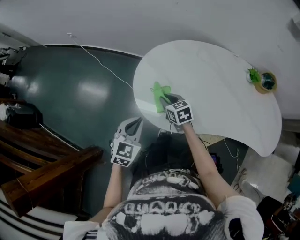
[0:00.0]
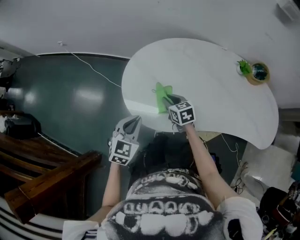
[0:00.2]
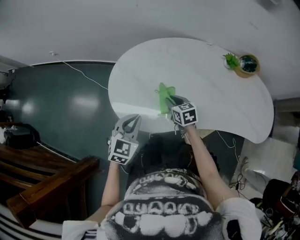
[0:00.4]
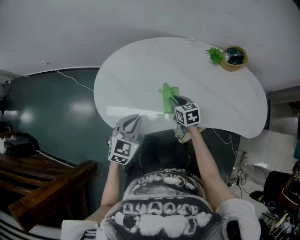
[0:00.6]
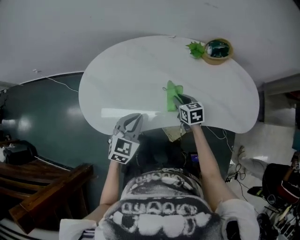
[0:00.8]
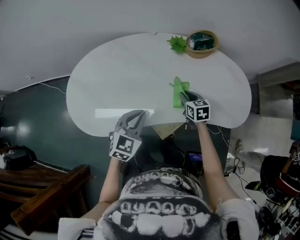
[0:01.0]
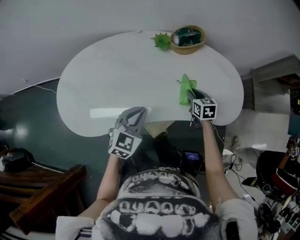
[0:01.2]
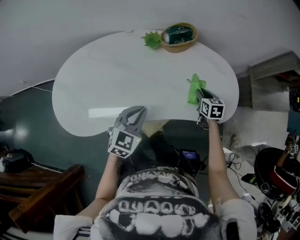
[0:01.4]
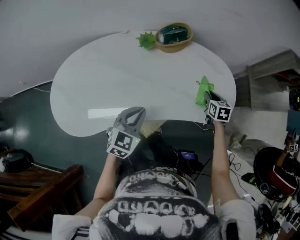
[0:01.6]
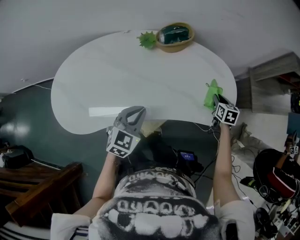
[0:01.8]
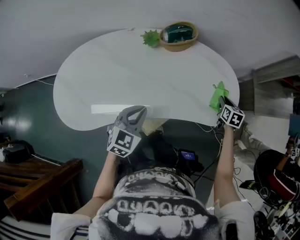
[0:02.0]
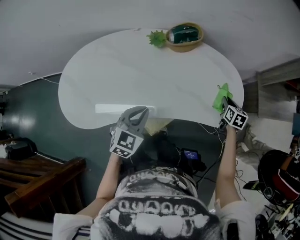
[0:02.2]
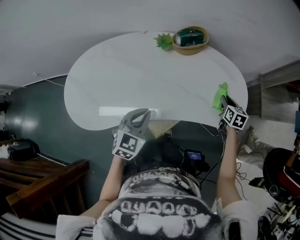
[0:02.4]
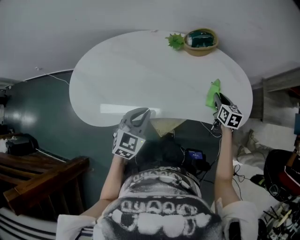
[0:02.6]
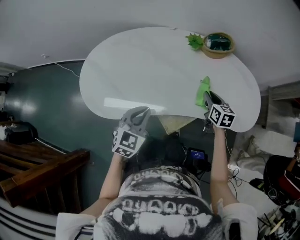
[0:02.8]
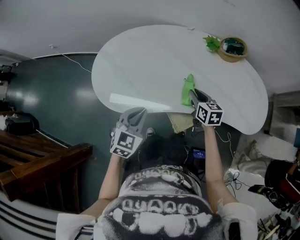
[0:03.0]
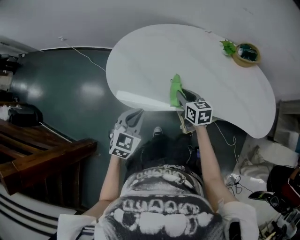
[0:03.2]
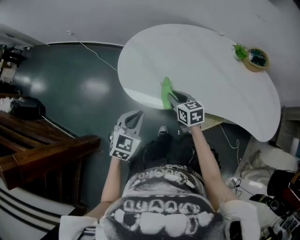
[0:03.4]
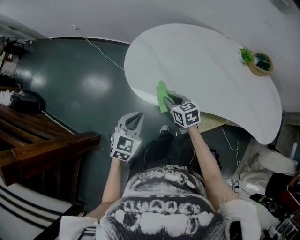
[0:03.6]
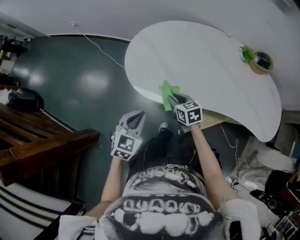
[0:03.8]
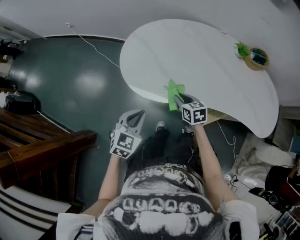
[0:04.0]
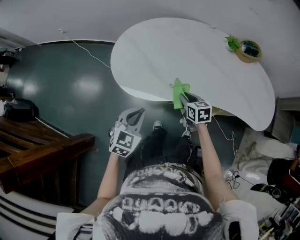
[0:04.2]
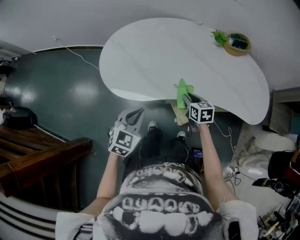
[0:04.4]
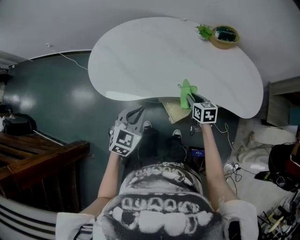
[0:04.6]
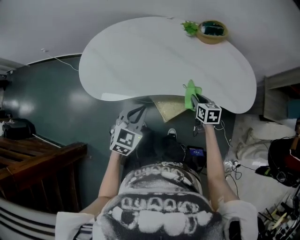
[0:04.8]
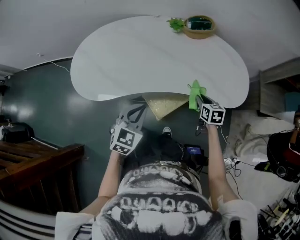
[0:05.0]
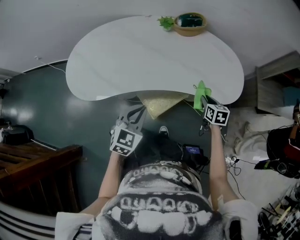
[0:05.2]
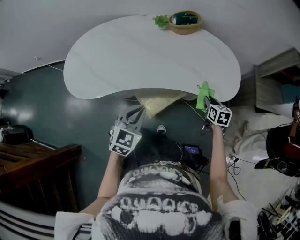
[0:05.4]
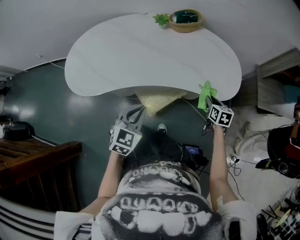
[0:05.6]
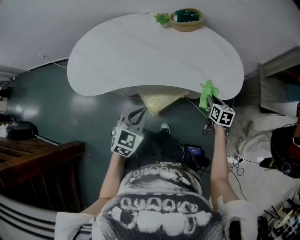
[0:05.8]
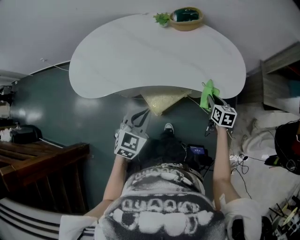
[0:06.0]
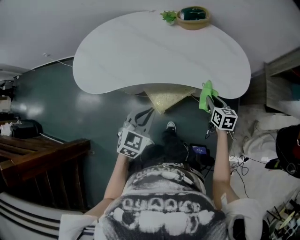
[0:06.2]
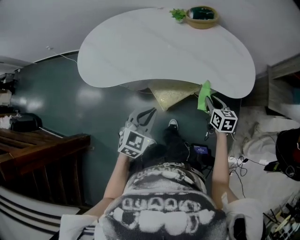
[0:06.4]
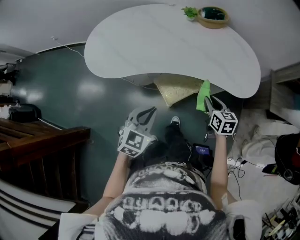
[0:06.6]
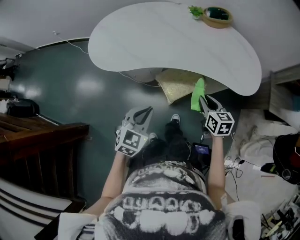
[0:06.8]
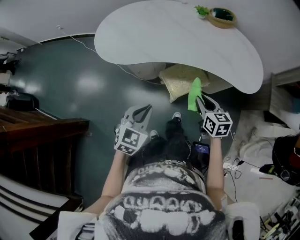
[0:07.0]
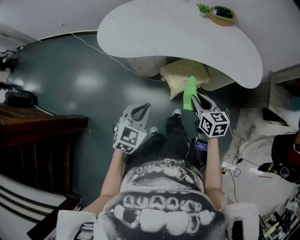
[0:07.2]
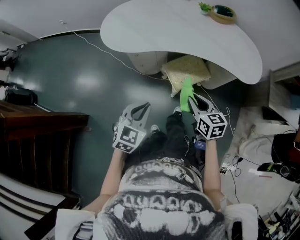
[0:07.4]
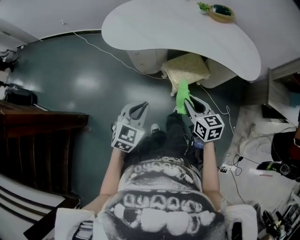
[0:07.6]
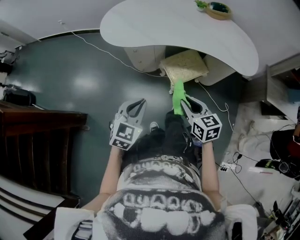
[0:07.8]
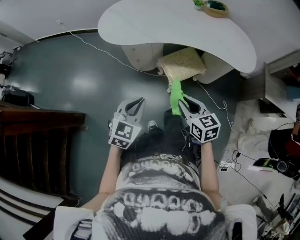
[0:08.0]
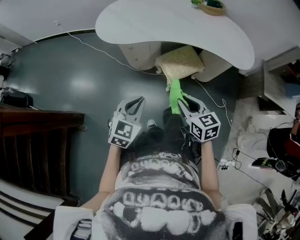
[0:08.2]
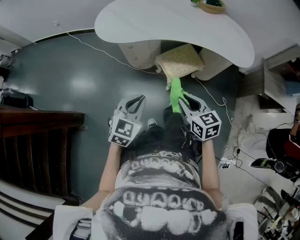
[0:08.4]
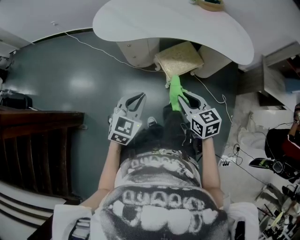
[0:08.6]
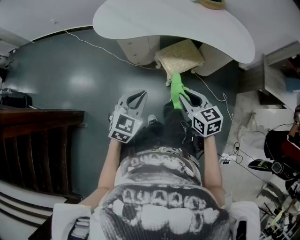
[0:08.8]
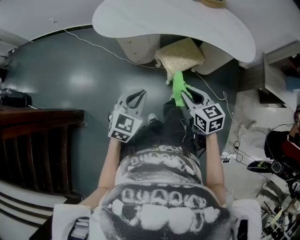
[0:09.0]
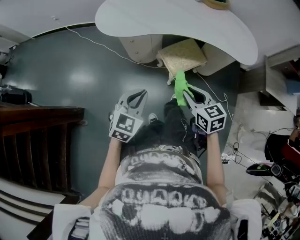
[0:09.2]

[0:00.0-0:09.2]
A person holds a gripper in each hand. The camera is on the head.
0:00.0 to 0:01.6: Both grippers are carried approximately 70 cm. The right gripper changes its angle by roughly 50 degrees; the left gripper turns by about 30 degrees.
0:01.6 to 0:03.0: The right gripper moves approximately 40 cm, and changes its angle by some 30 degrees, while the left gripper shifts by approximately 25 cm.
0:03.0 to 0:04.6: Both grippers move backward, about 10 cm. The left gripper goes to the left and returns, some 20 cm each way. The right gripper moves roughly 35 cm to the left and comes back.
0:04.6 to 0:06.2: Both grippers move to the right, approximately 25 cm.
0:06.2 to 0:07.6: The left gripper travels backward and to the left by approximately 30 cm, while the right gripper travels to the left and backward by about 40 cm, and changes its angle by roughly 20 degrees.
0:07.6 to 0:09.2: The grippers stay close to where they were, moving slightly.

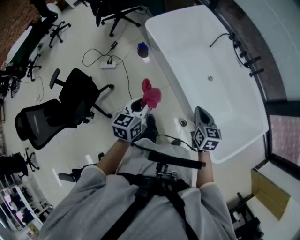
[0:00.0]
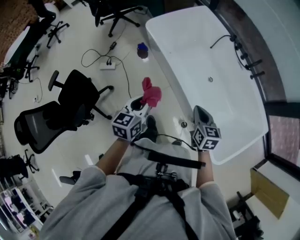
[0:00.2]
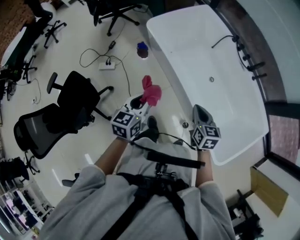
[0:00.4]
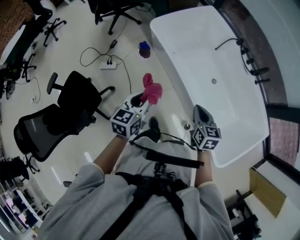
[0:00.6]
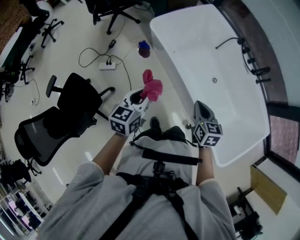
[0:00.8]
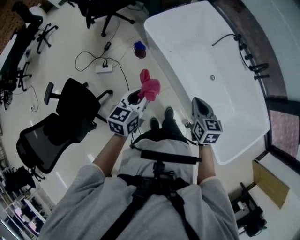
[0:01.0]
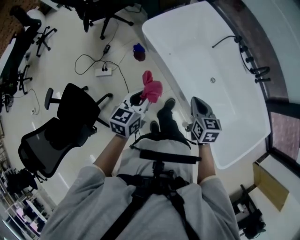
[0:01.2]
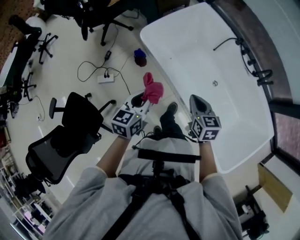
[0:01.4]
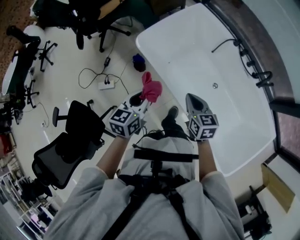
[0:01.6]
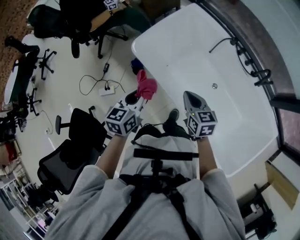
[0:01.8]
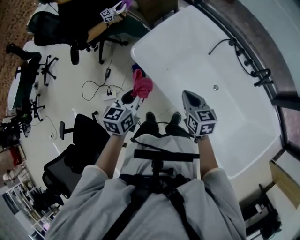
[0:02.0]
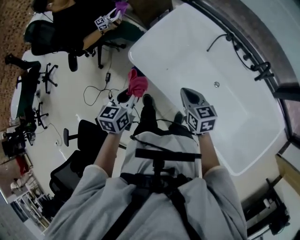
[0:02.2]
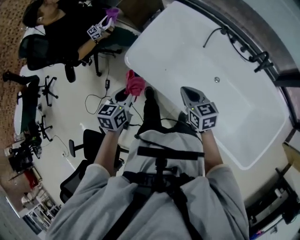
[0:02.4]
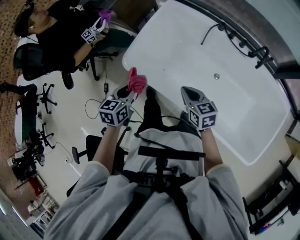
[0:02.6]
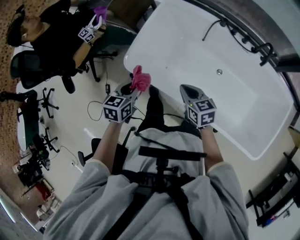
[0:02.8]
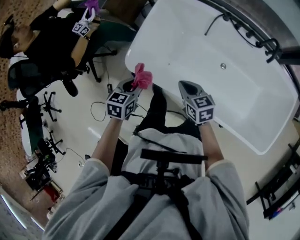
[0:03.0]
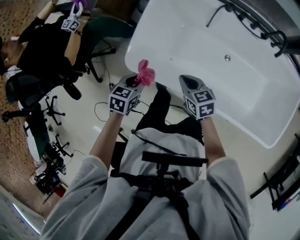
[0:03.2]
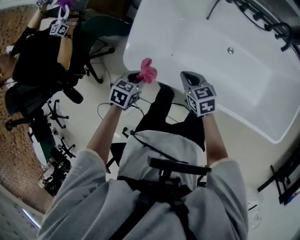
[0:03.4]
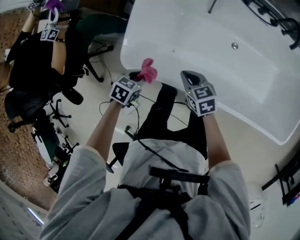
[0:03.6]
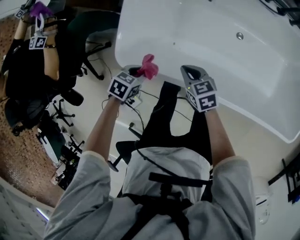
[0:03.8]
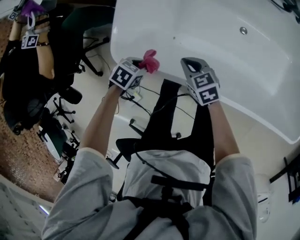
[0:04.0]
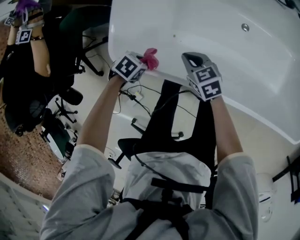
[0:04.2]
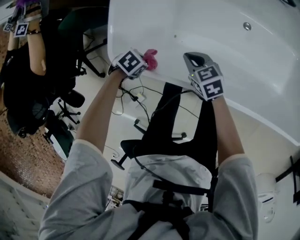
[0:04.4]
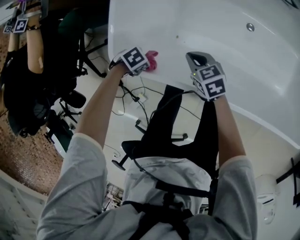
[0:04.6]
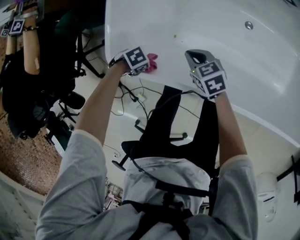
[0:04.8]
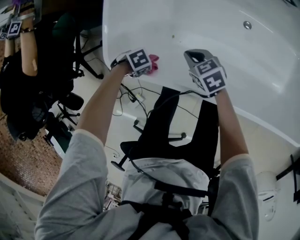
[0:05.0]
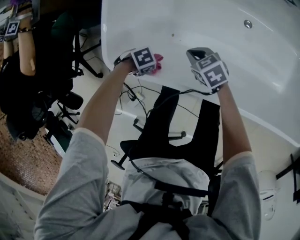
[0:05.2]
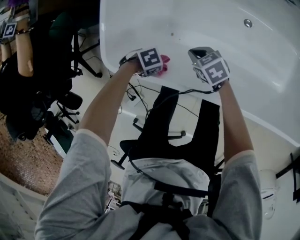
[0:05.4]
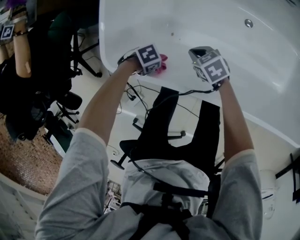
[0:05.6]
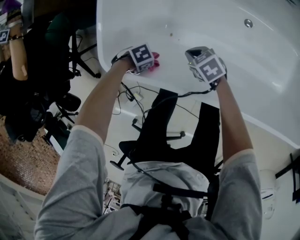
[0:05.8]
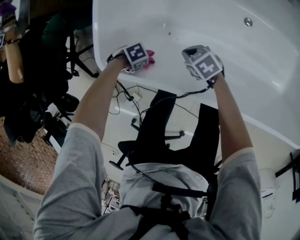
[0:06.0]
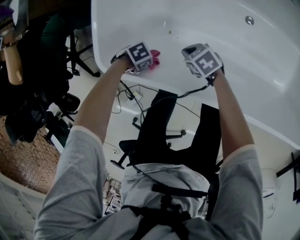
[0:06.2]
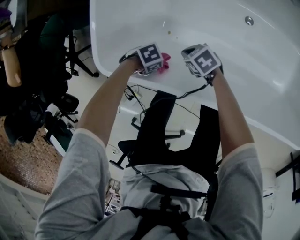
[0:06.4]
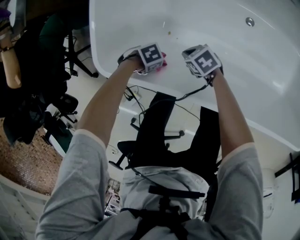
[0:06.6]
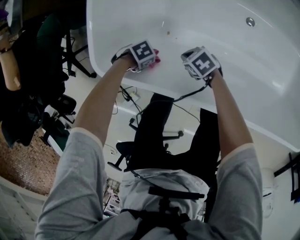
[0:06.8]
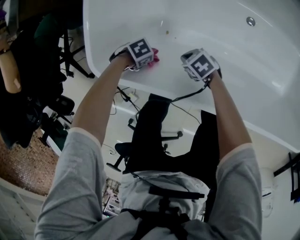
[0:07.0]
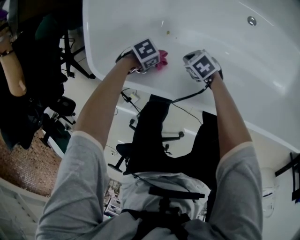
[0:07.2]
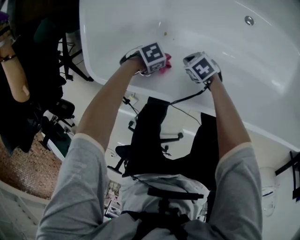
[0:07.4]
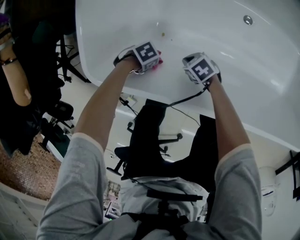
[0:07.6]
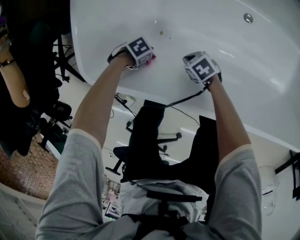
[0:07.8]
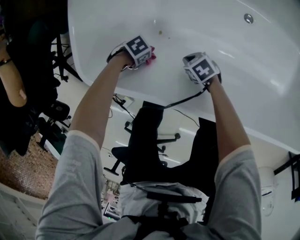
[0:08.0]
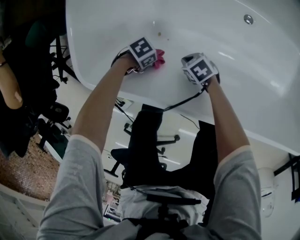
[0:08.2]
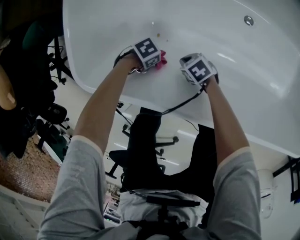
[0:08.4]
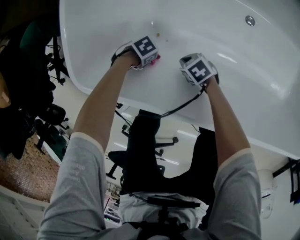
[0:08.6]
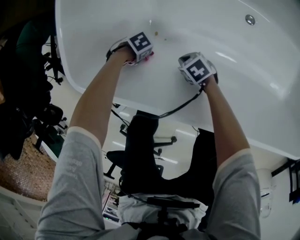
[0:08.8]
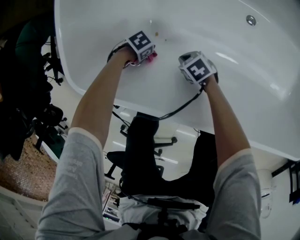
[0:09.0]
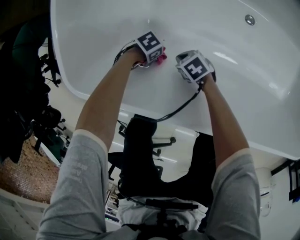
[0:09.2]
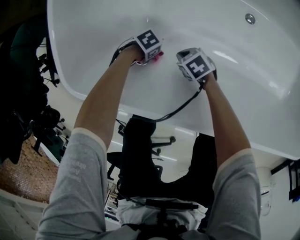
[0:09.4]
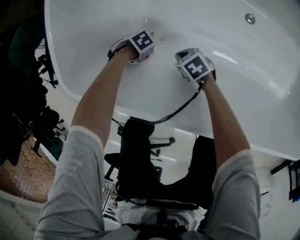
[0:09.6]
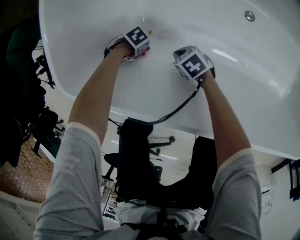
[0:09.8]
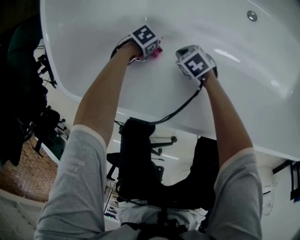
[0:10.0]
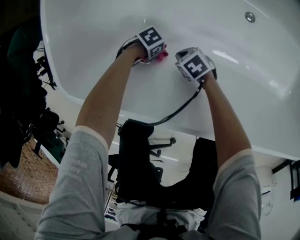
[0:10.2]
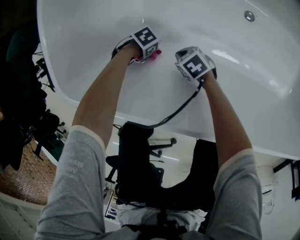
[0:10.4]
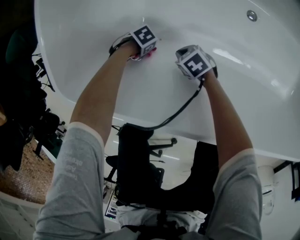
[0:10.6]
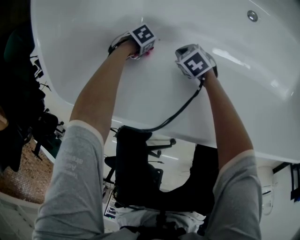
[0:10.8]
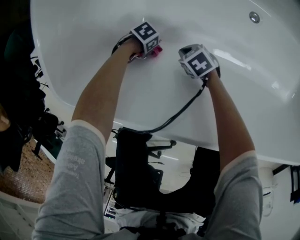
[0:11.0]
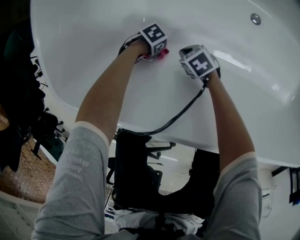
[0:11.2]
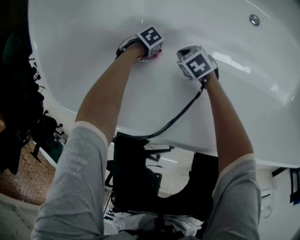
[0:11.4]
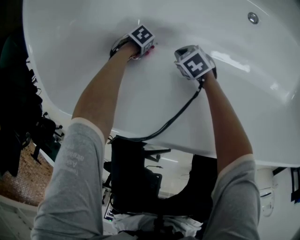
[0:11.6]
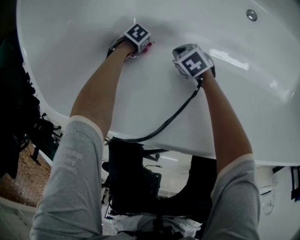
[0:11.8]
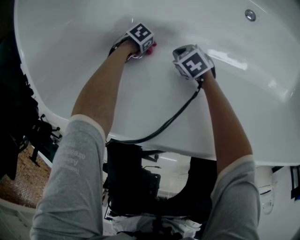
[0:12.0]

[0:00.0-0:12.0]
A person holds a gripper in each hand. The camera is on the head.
0:00.0 to 0:01.6: The right gripper shifts by approximately 35 cm.
0:01.6 to 0:03.0: The right gripper shifts by about 20 cm.
0:03.0 to 0:04.4: The right gripper moves downward, approximately 25 cm.
0:04.4 to 0:06.0: The right gripper heads downward, covering some 10 cm, and changes its angle by about 20 degrees.
0:06.0 to 0:07.6: The right gripper is displaced downward by roughly 10 cm.
0:07.6 to 0:09.0: The right gripper heads downward, covering about 5 cm.
0:10.4 to 0:12.0: The right gripper travels downward by approximately 5 cm.

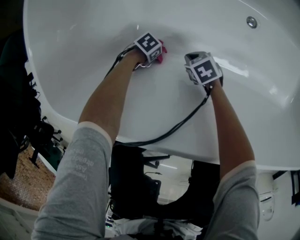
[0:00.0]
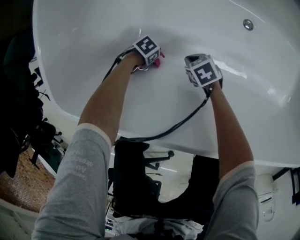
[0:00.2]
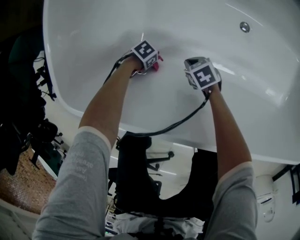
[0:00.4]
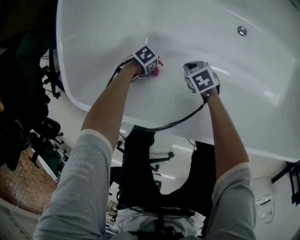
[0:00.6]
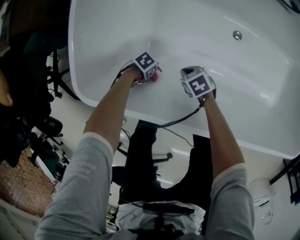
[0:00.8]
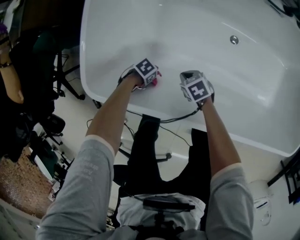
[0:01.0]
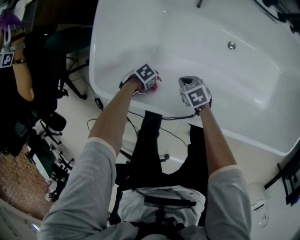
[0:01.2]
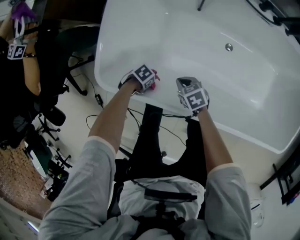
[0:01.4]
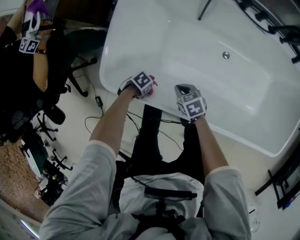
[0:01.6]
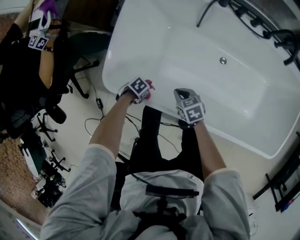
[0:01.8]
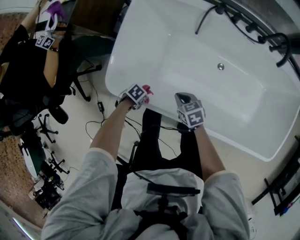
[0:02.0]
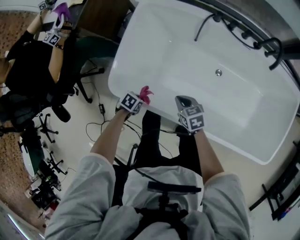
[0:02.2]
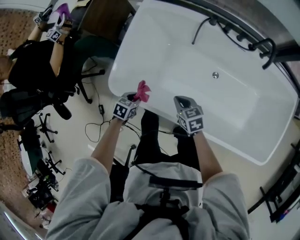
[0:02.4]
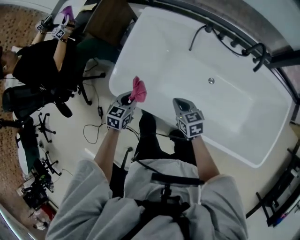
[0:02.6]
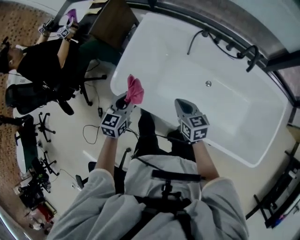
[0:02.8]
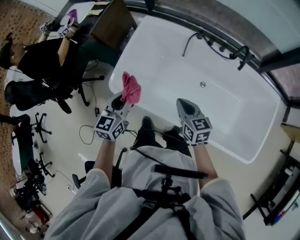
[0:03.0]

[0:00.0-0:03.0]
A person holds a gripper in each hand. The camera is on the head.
0:00.0 to 0:01.6: The right gripper heads upward, covering some 30 cm.
0:01.6 to 0:03.0: The right gripper is displaced upward by approximately 35 cm, and rotates some 30 degrees.
